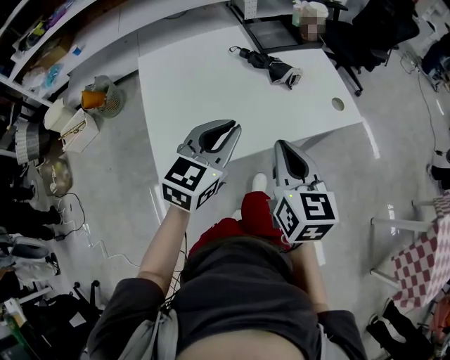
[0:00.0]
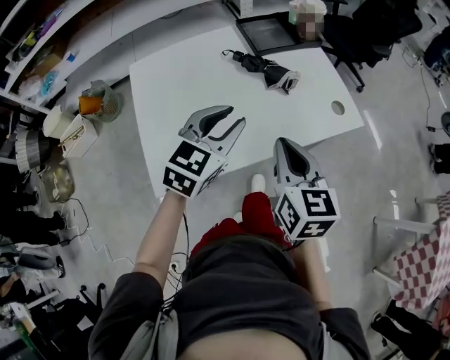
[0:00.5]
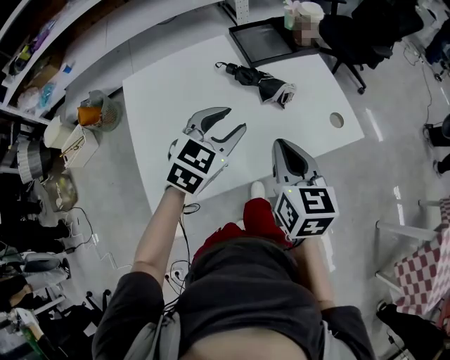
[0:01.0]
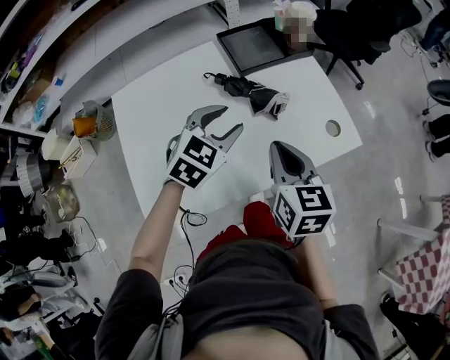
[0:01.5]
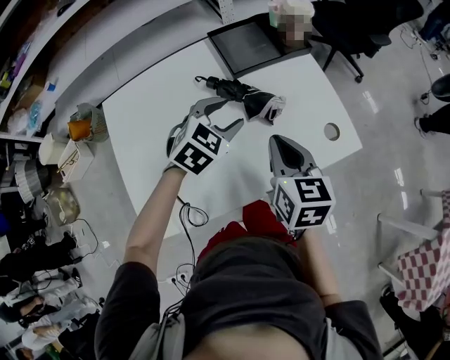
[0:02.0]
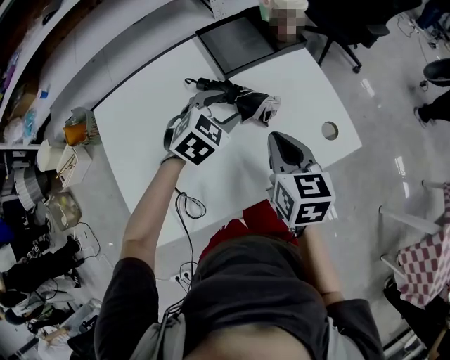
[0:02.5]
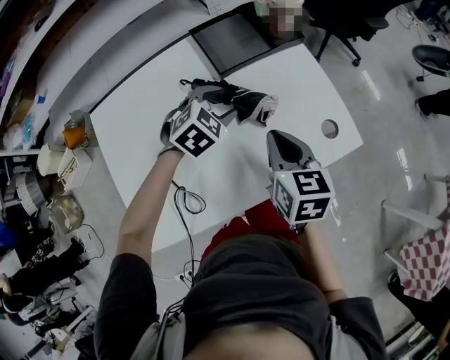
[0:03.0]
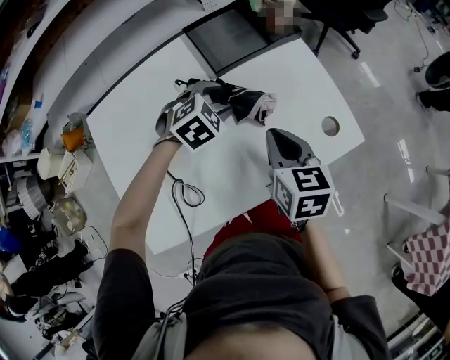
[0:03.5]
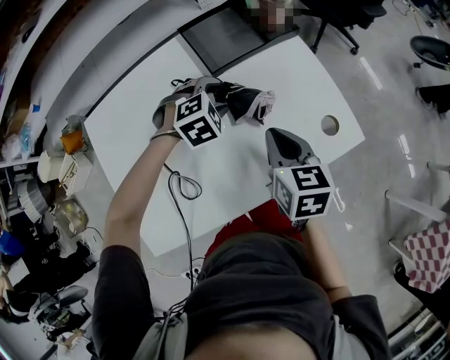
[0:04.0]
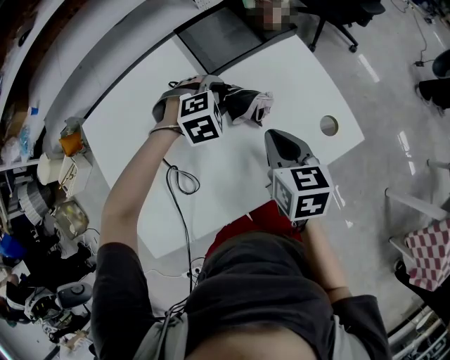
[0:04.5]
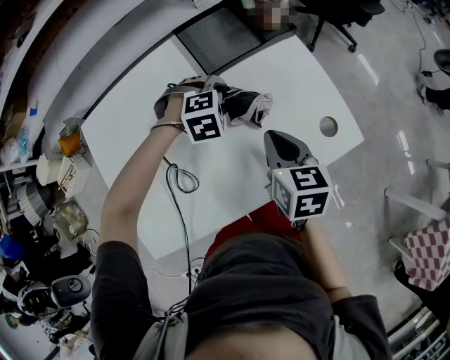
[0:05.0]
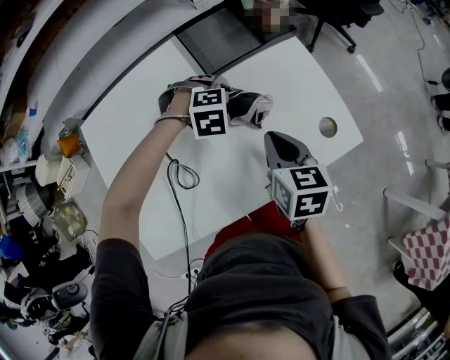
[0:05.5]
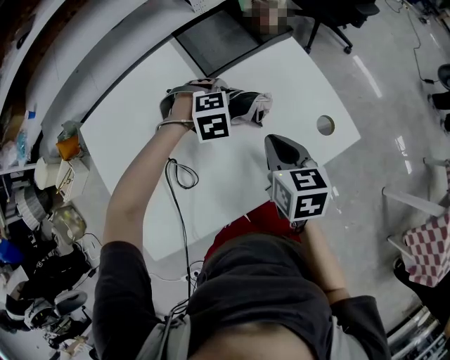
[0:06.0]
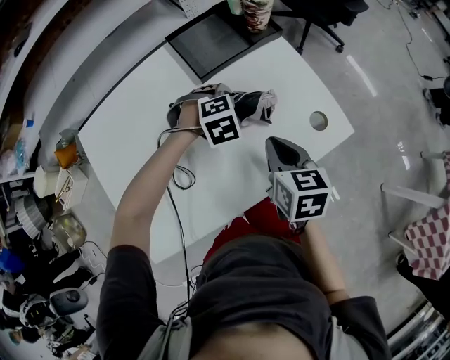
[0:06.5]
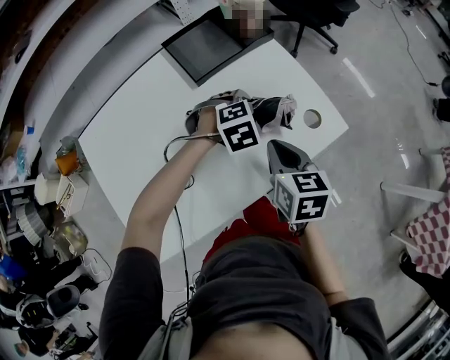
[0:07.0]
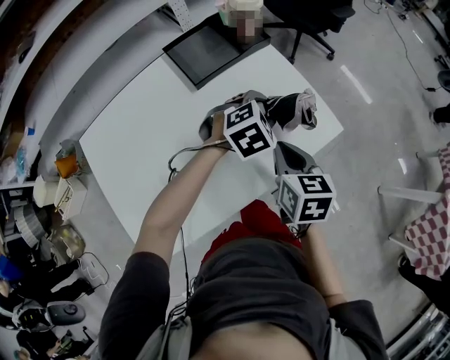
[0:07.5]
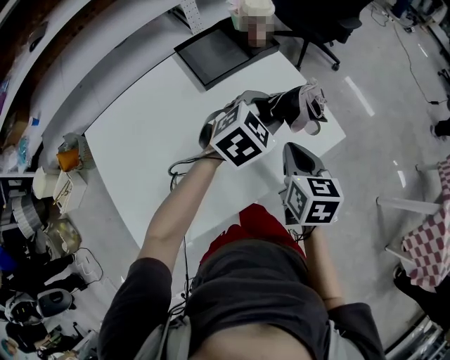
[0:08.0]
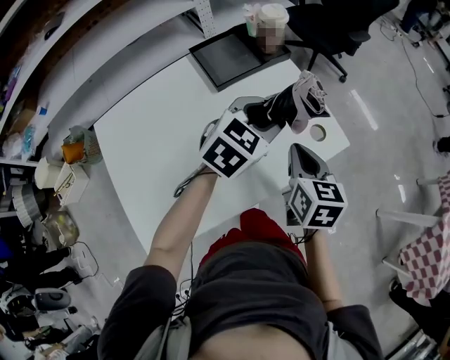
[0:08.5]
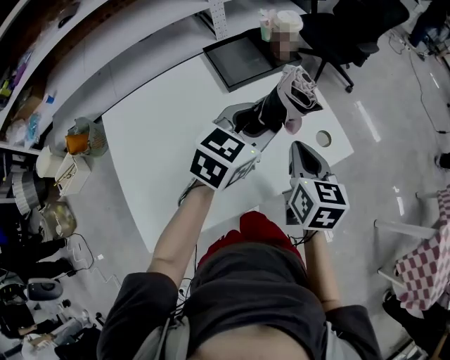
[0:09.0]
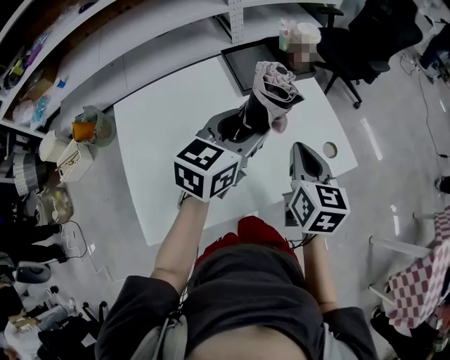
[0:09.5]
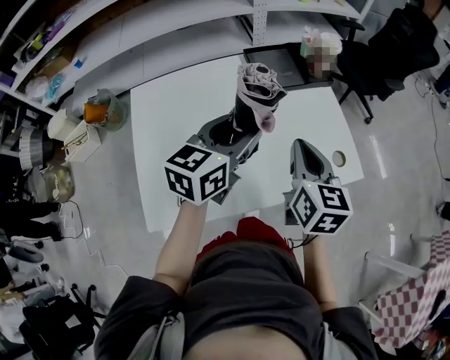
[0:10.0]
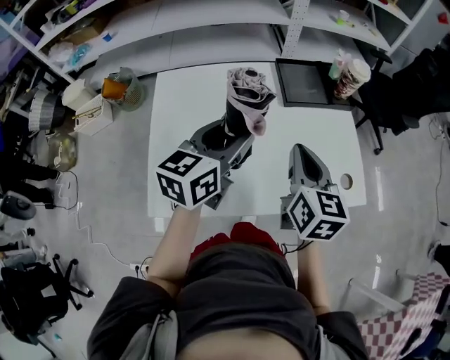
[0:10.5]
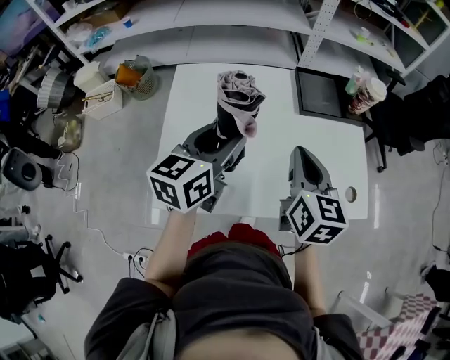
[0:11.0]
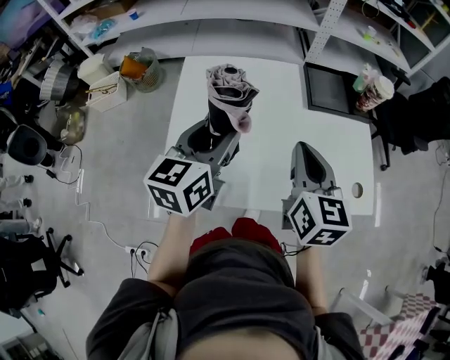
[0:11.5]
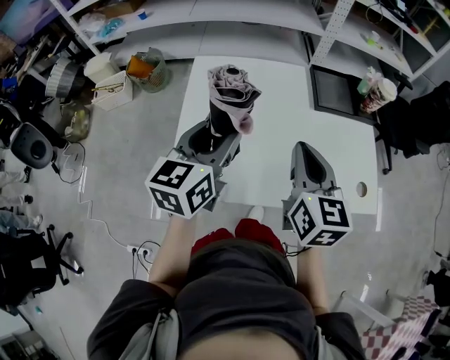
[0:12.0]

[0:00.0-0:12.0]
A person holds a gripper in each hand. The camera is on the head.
0:00.0 to 0:02.0: Both grippers move forward, approximately 25 cm. The left gripper changes its angle by approximately 30 degrees, and opens.
0:02.0 to 0:04.0: The right gripper travels downward and forward by some 10 cm; the left gripper moves downward and forward, some 15 cm, and changes its angle by roughly 30 degrees.
0:06.0 to 0:08.0: The left gripper is displaced to the right and upward by approximately 20 cm, and tips its fingers upward by some 30 degrees; the right gripper moves to the right, approximately 5 cm.
0:08.0 to 0:10.0: The right gripper goes about 15 cm upward and to the left. Meanwhile the left gripper goes some 20 cm to the left, backward and upward, and swivels roughly 60 degrees.
0:10.0 to 0:12.0: The right gripper shifts roughly 15 cm to the left, and swivels approximately 20 degrees; the left gripper travels to the left and backward by about 20 cm, and turns by approximately 30 degrees.

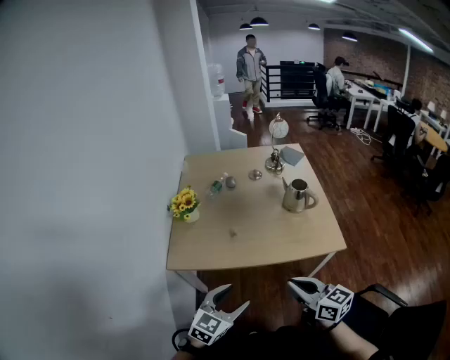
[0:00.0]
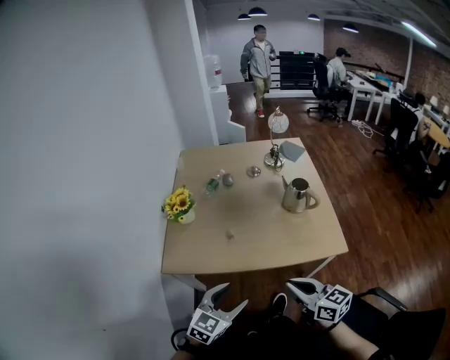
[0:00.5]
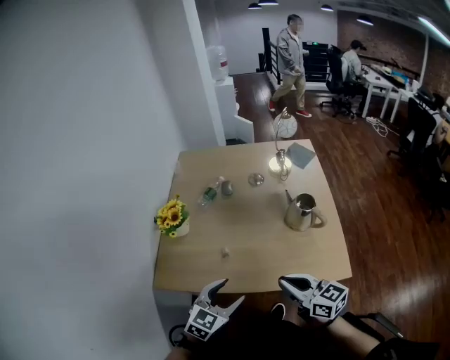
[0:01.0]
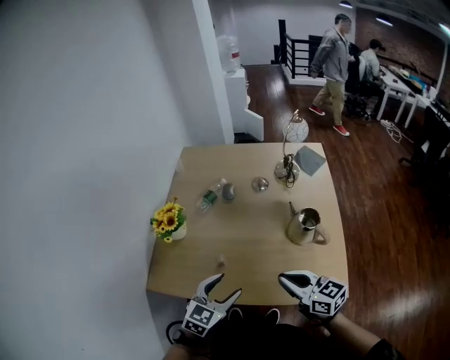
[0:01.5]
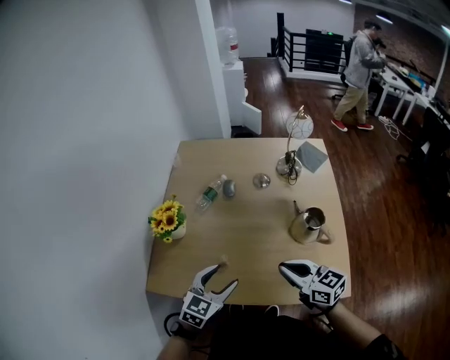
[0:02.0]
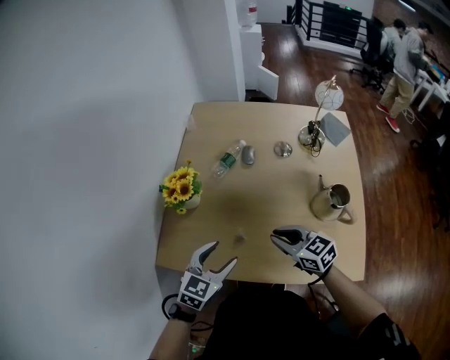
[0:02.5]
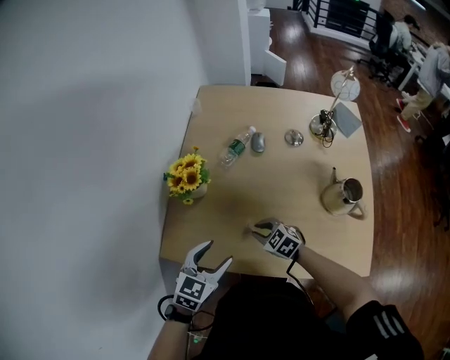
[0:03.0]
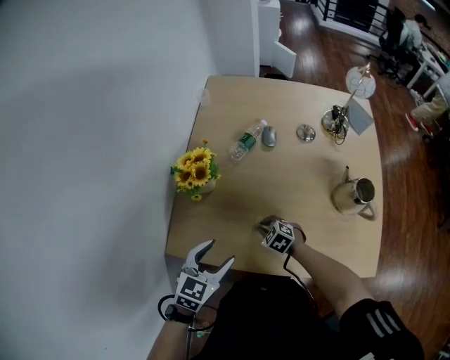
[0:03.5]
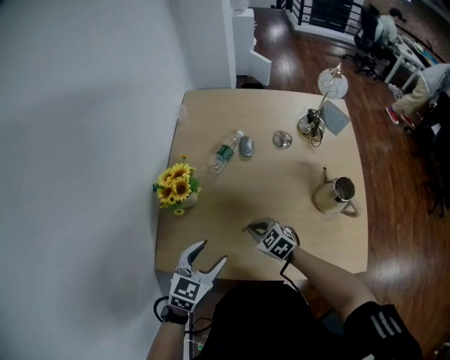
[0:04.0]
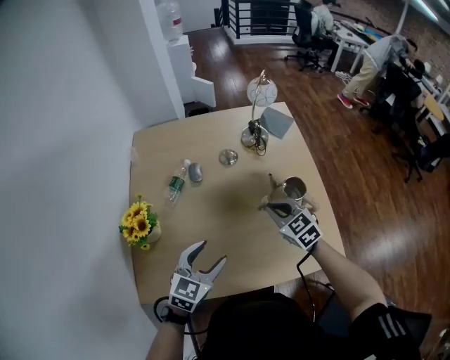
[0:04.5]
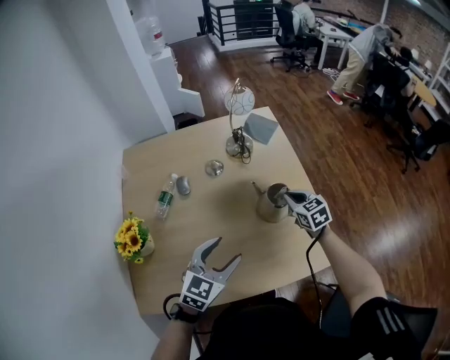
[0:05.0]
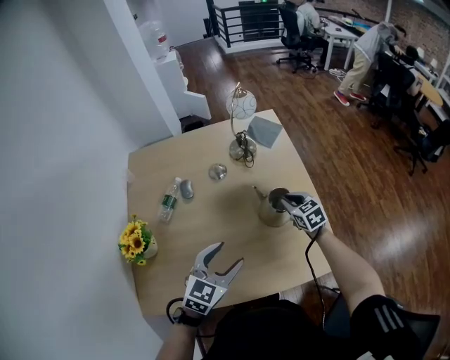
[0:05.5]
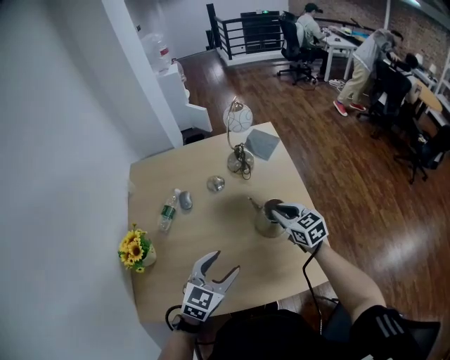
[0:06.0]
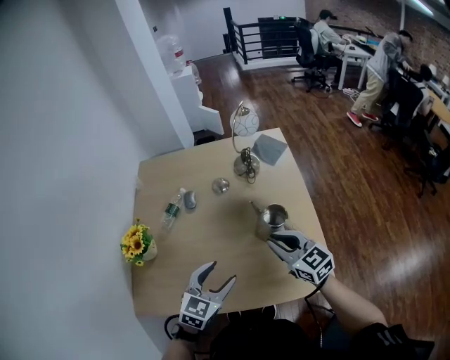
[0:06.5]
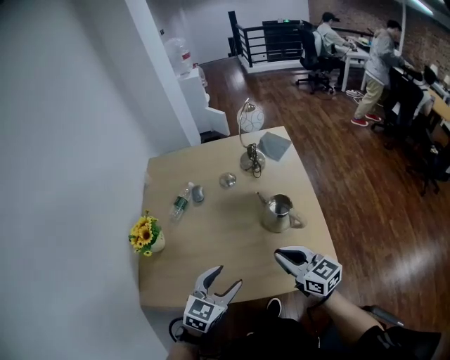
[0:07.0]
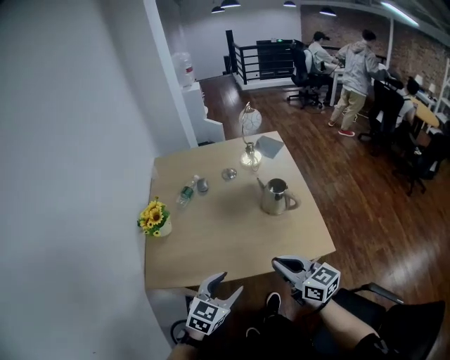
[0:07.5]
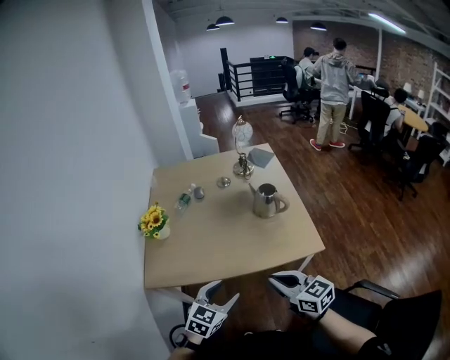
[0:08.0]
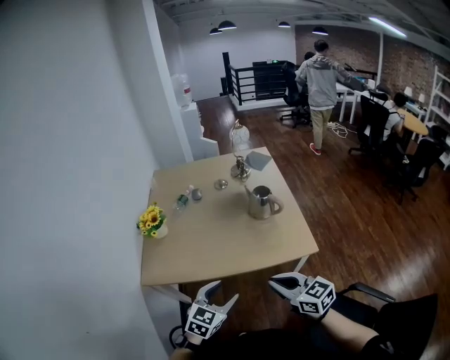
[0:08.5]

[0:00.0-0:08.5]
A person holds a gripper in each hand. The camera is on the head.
0:00.0 to 0:02.0: The two grippers go roughly 30 cm forward.
0:02.0 to 0:04.0: The left gripper travels to the left and forward by roughly 15 cm. Meanwhile the right gripper goes about 30 cm downward, to the left and forward, and points its fingers about 30 degrees further downward.
0:04.0 to 0:06.5: The right gripper swings up and down, approximately 20 cm each way, with 2 reversals, and tilts its fingers roughly 30 degrees upward; the left gripper moves roughly 25 cm.
0:06.5 to 0:08.5: The two grippers go roughly 35 cm backward.

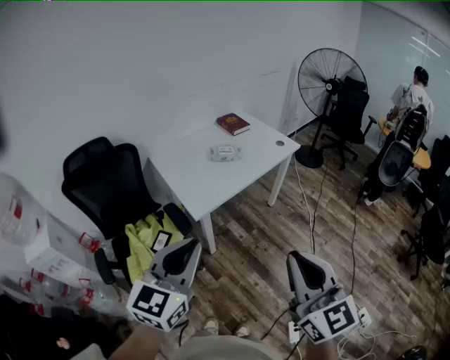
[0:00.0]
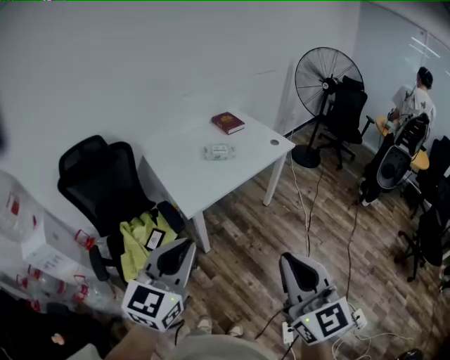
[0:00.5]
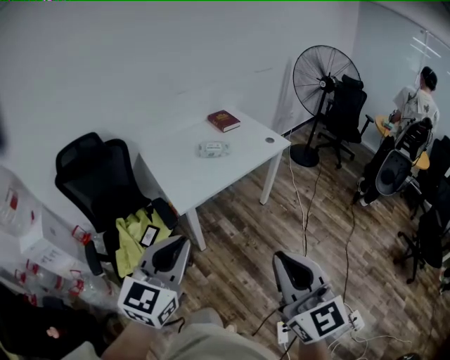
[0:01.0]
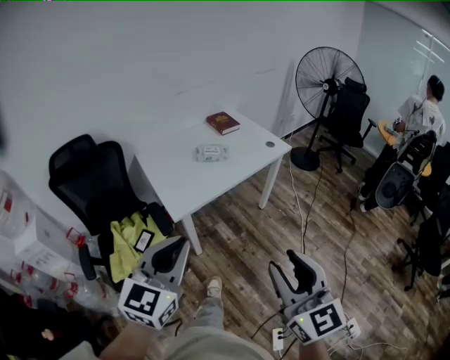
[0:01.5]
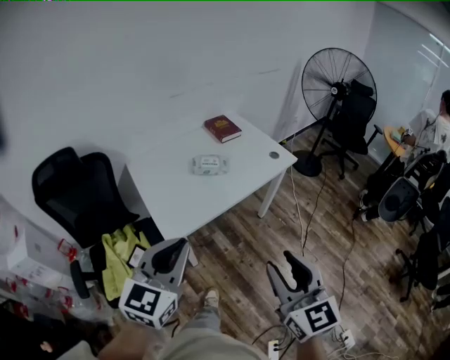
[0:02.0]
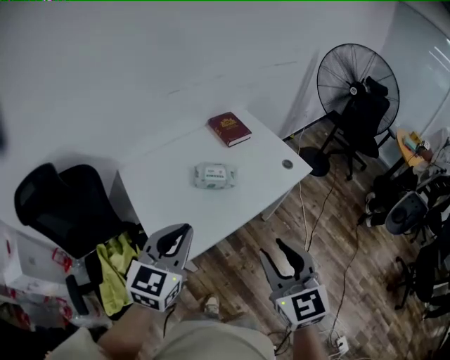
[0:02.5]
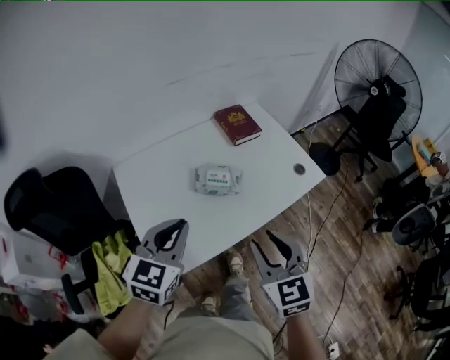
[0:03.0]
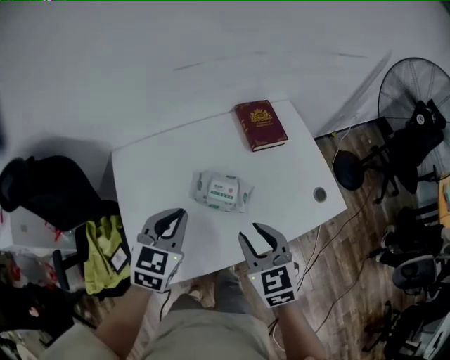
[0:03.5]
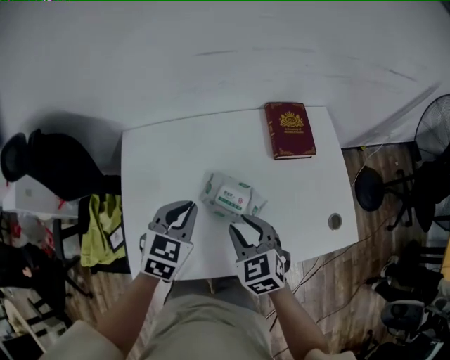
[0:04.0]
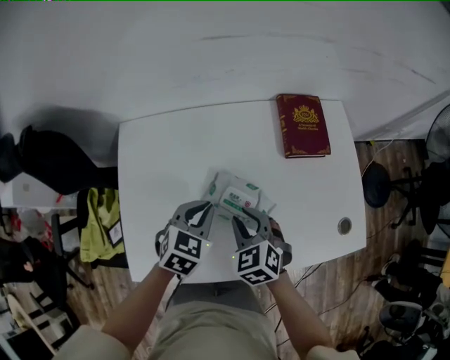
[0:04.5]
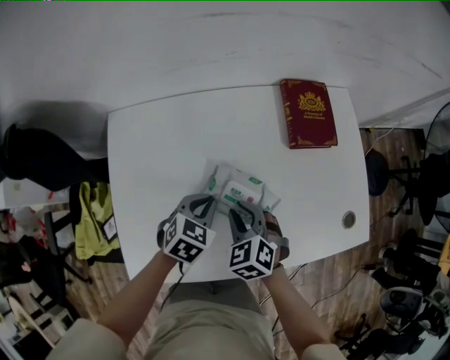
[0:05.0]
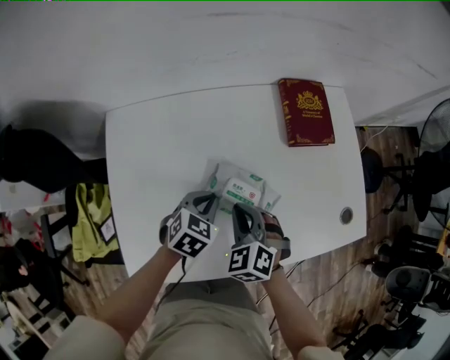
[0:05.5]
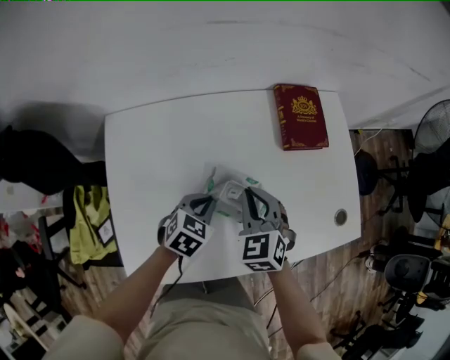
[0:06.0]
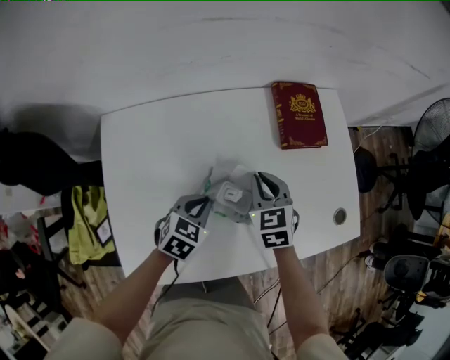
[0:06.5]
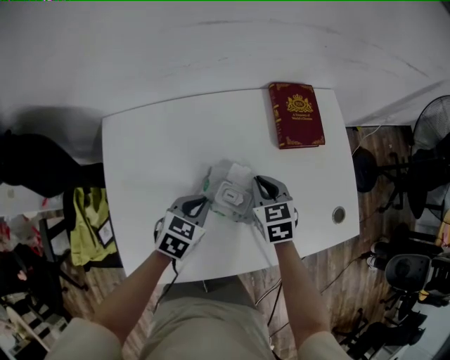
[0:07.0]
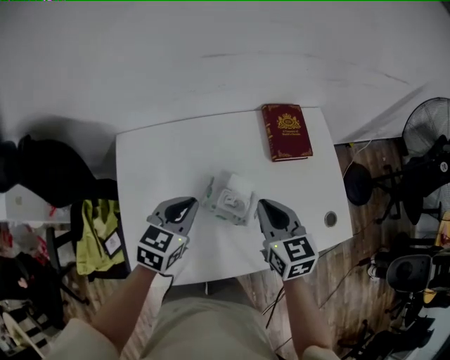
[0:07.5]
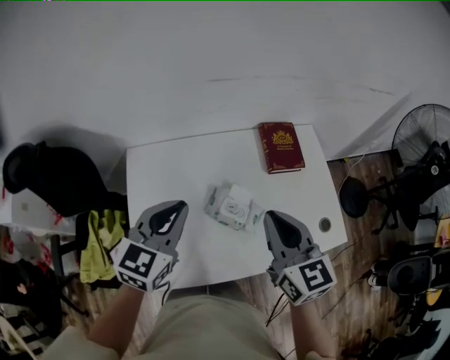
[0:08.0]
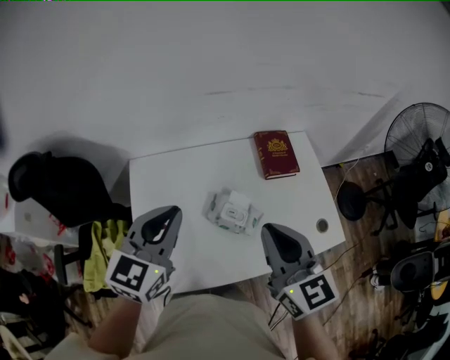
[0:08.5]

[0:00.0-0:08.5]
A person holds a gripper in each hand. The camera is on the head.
0:00.0 to 0:02.0: The grippers both shift forward by about 20 cm. The right gripper opens its fingers.
0:02.0 to 0:04.0: The pair of grippers is taken about 50 cm. The left gripper tips its fingers downward by some 30 degrees. Meanwhile the right gripper points its fingers approximately 30 degrees further downward.
0:04.0 to 0:06.5: The right gripper moves forward and downward, about 15 cm, and closes. Meanwhile the left gripper moves downward, some 15 cm.
0:06.5 to 0:08.5: The right gripper moves upward and backward, roughly 35 cm, and angles its fingers upward, by about 30 degrees. Meanwhile the left gripper goes some 35 cm upward, and angles its fingers upward, by approximately 40 degrees.
